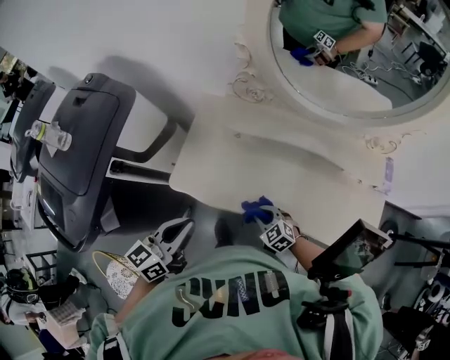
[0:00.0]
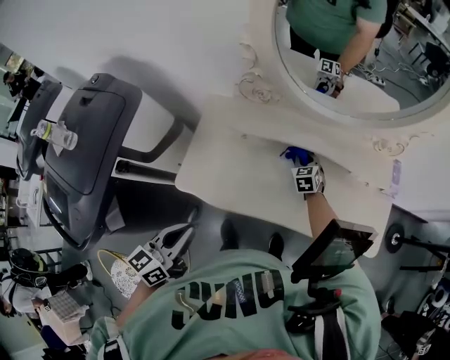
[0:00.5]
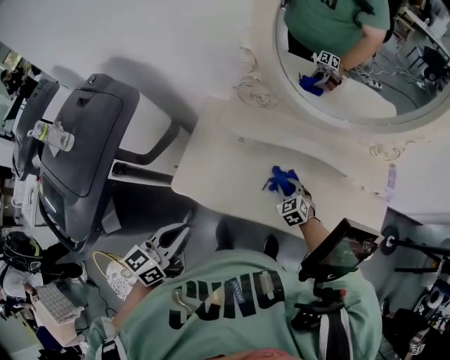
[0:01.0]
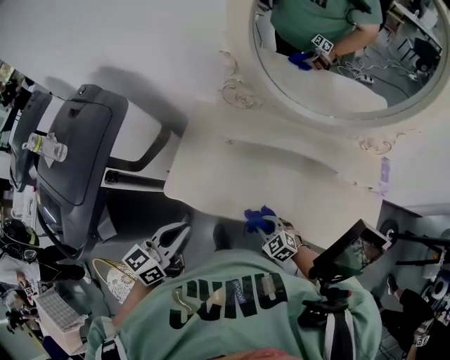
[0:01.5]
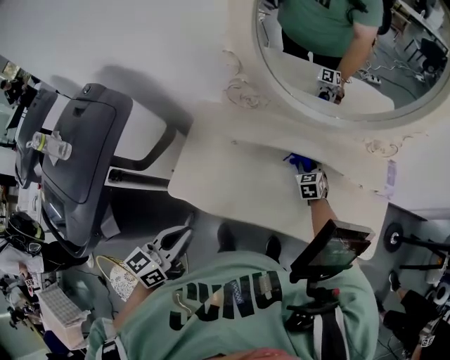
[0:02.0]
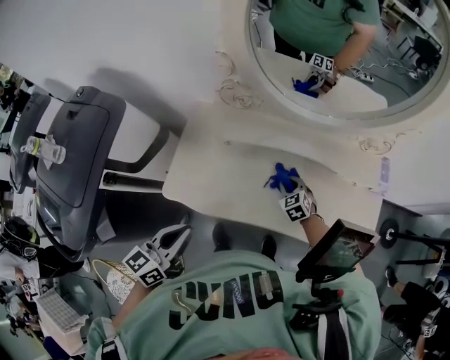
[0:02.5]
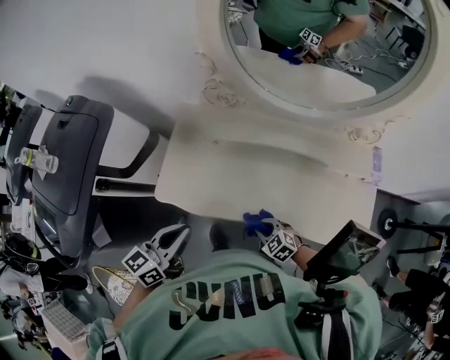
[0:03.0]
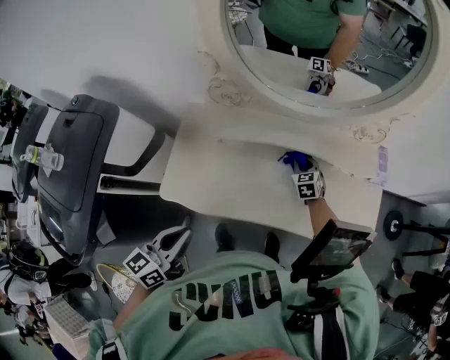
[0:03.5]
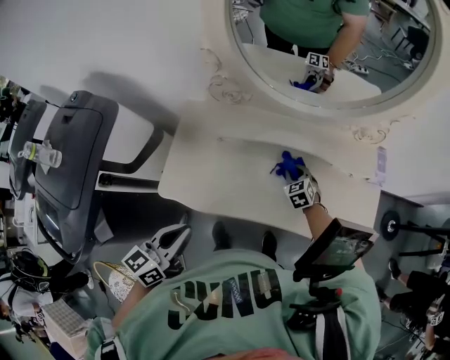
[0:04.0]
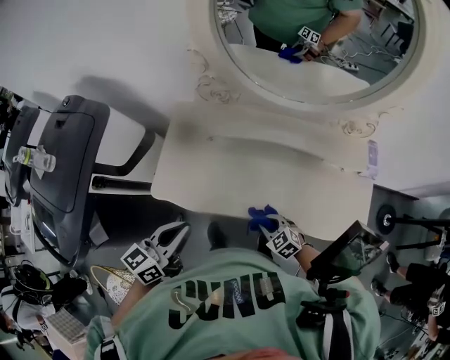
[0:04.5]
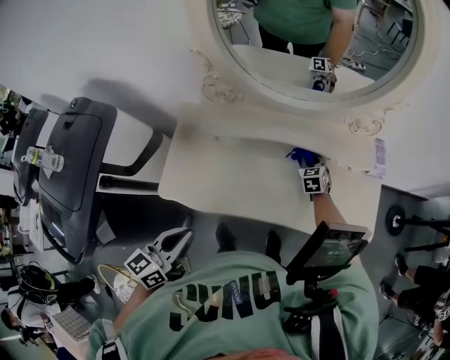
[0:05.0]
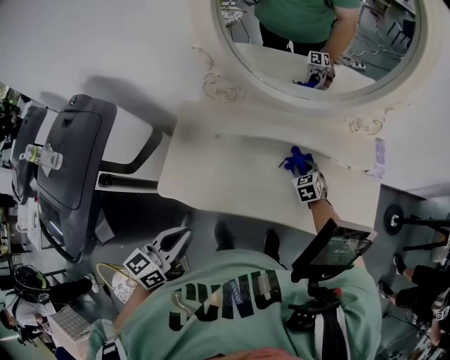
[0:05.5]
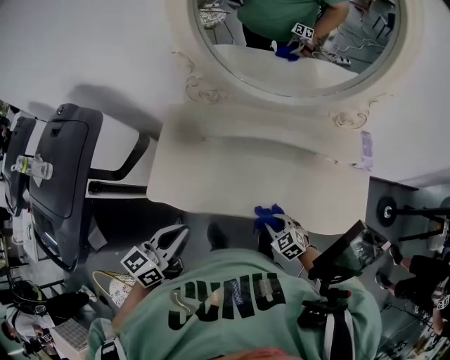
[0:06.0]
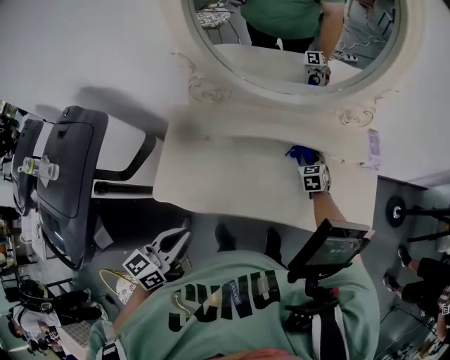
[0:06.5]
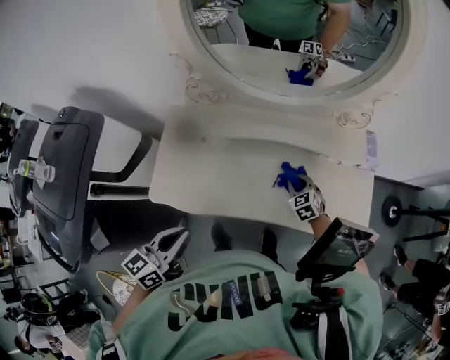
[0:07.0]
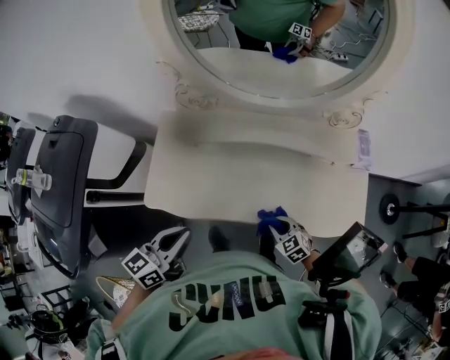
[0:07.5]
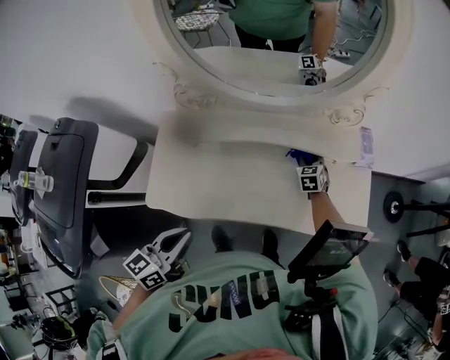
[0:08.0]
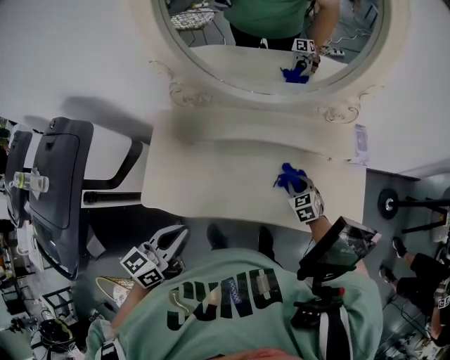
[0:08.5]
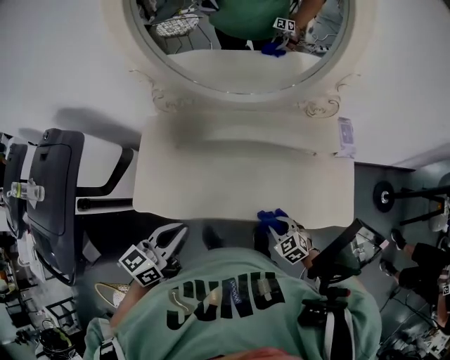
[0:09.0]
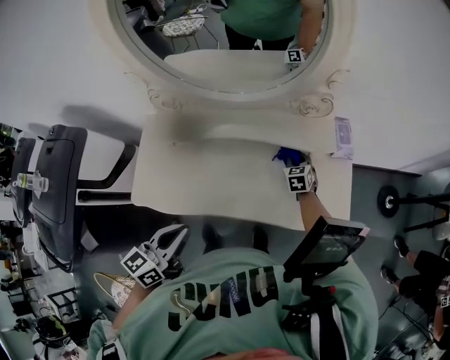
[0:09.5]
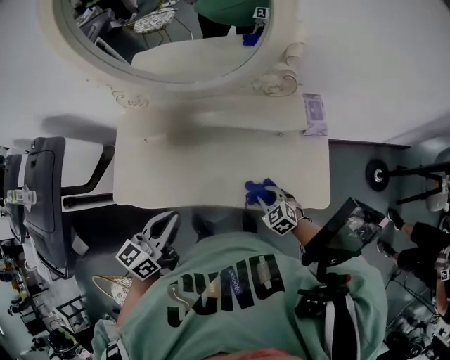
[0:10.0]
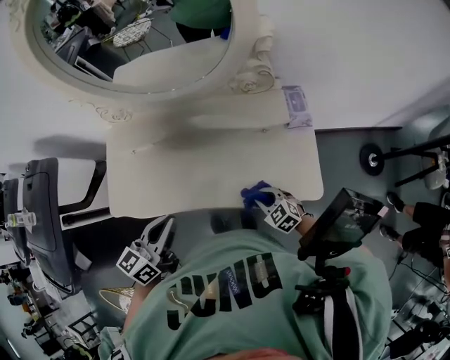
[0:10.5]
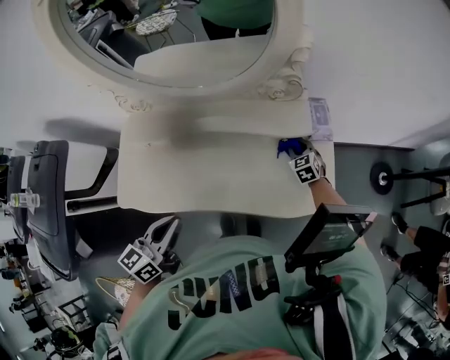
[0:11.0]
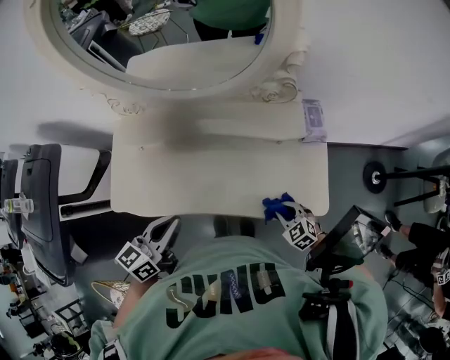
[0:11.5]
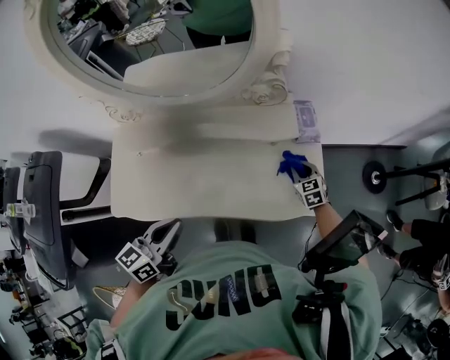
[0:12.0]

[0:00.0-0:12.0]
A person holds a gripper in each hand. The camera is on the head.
0:00.0 to 0:02.0: The right gripper swings forward and backward, roughly 25 cm each way, with 2 reversals, and rotates approximately 40 degrees.
0:04.0 to 0:06.0: The right gripper moves some 25 cm.
0:06.0 to 0:08.0: The right gripper changes place by about 30 cm, and changes its angle by some 40 degrees.
0:08.0 to 0:10.0: The right gripper swings forward and backward, roughly 30 cm each way, with 2 reversals, and rotates approximately 30 degrees, while the left gripper heads to the right, covering about 15 cm.
0:10.0 to 0:12.0: The right gripper moves forward and backward over approximately 25 cm, changing direction 2 times, and changes its angle by about 30 degrees.

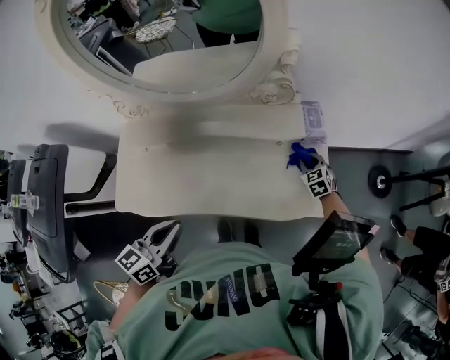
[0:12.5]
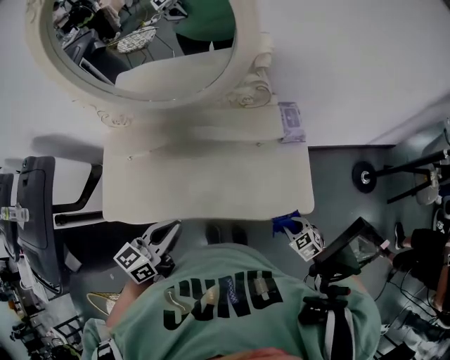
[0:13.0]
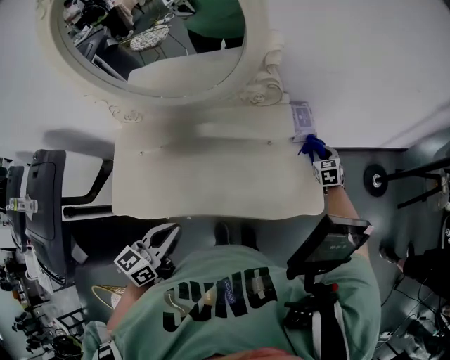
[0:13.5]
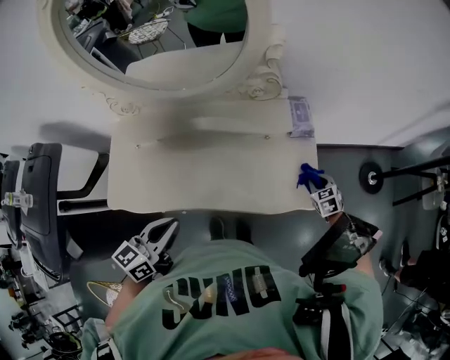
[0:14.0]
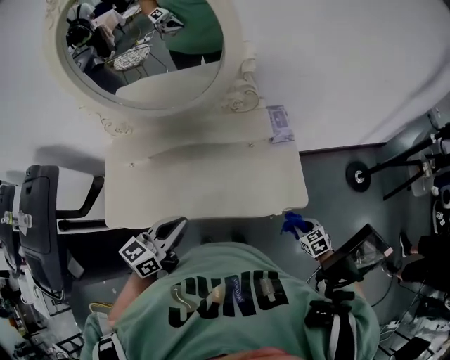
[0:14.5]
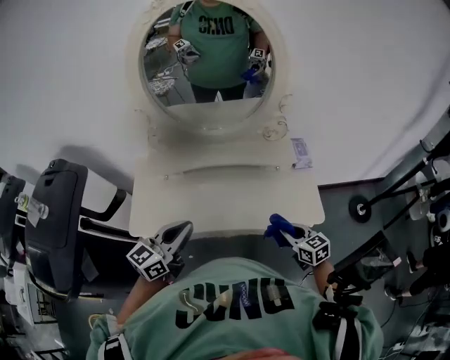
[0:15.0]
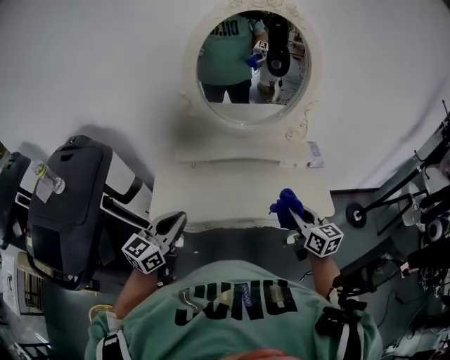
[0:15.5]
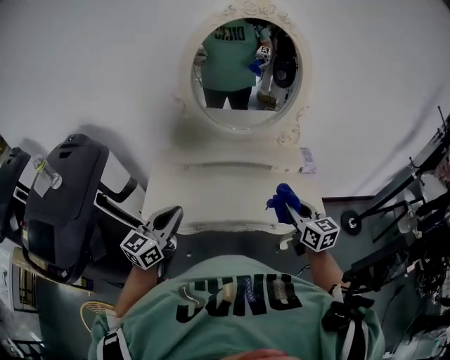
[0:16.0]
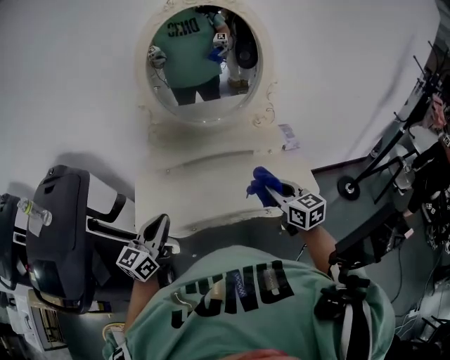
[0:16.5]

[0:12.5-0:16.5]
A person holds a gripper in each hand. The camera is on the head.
0:12.5 to 0:14.5: The right gripper moves forward and backward over some 30 cm, changing direction 2 times; the left gripper shifts about 5 cm to the right.
0:14.5 to 0:16.5: The left gripper goes approximately 30 cm to the left and backward, and changes its angle by approximately 20 degrees, while the right gripper travels upward and to the left by roughly 50 cm, and tips its fingers upward by some 40 degrees.

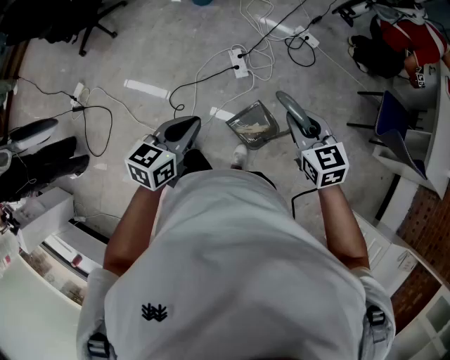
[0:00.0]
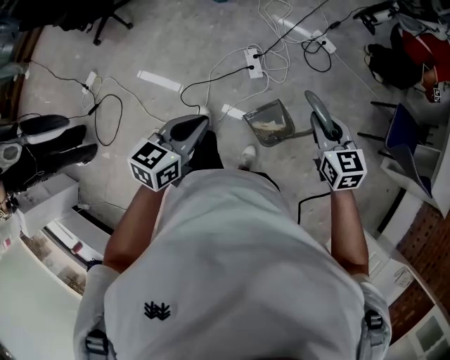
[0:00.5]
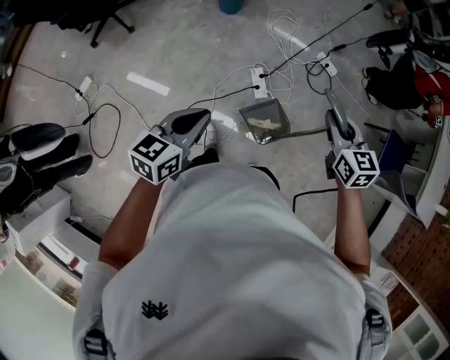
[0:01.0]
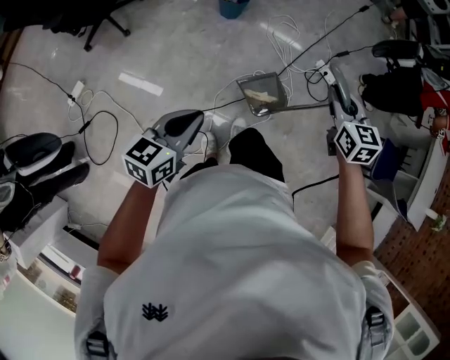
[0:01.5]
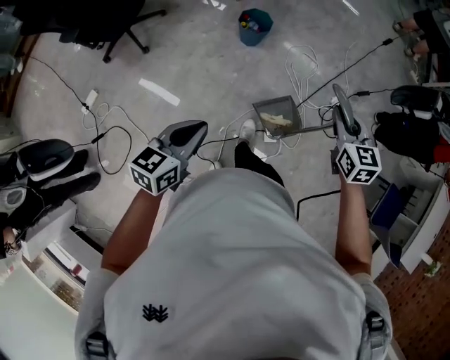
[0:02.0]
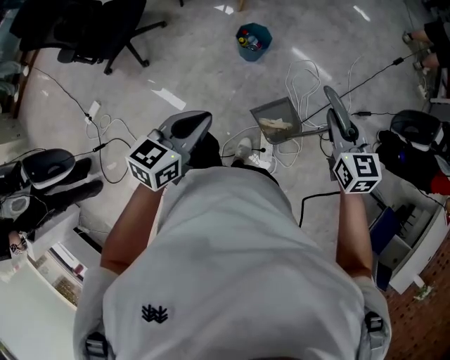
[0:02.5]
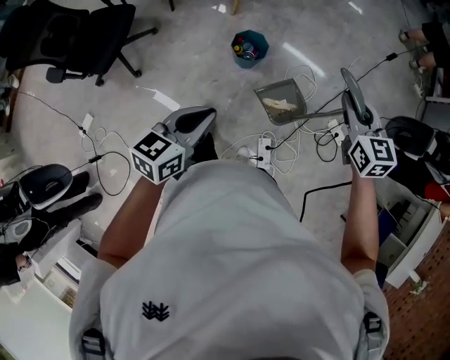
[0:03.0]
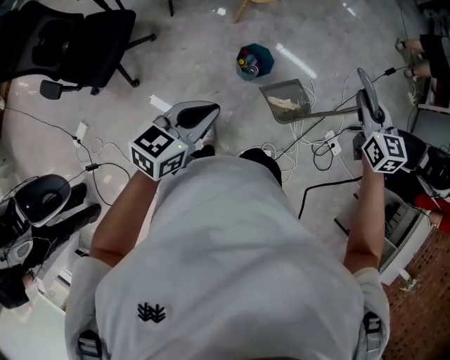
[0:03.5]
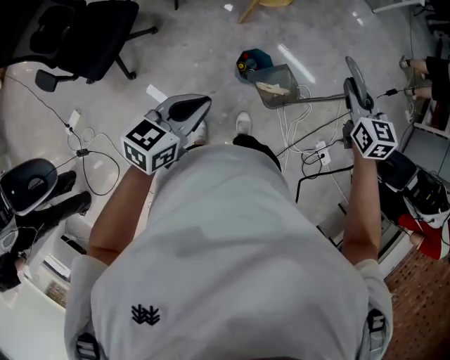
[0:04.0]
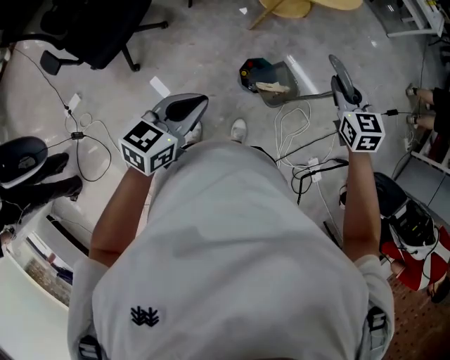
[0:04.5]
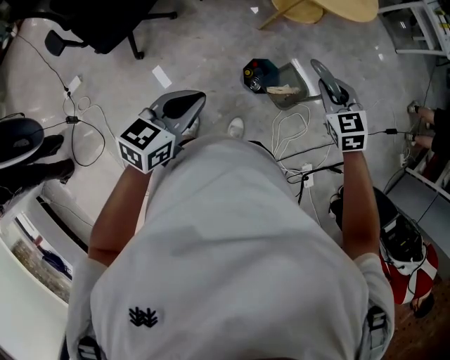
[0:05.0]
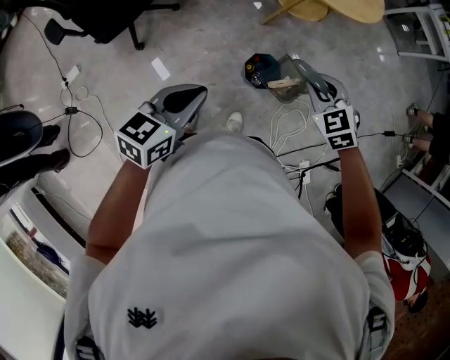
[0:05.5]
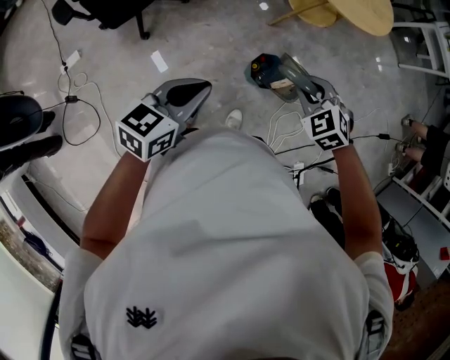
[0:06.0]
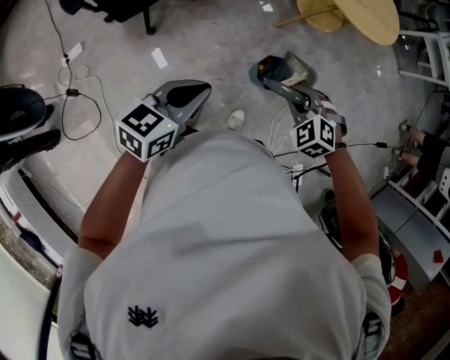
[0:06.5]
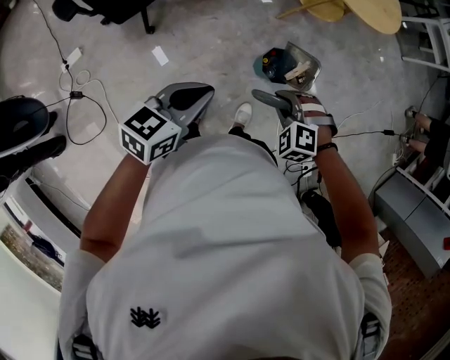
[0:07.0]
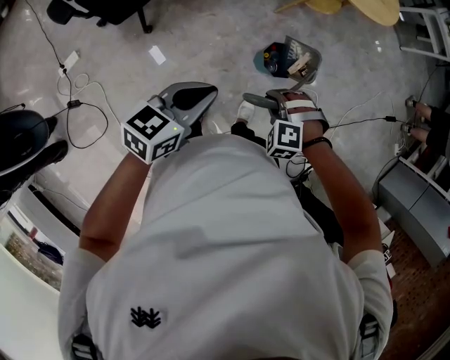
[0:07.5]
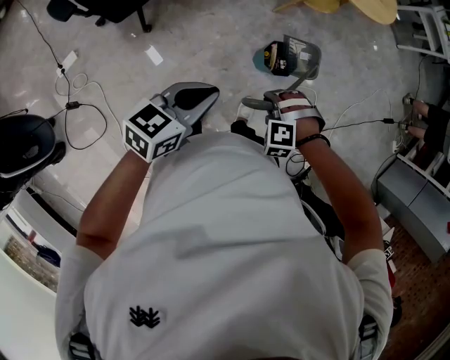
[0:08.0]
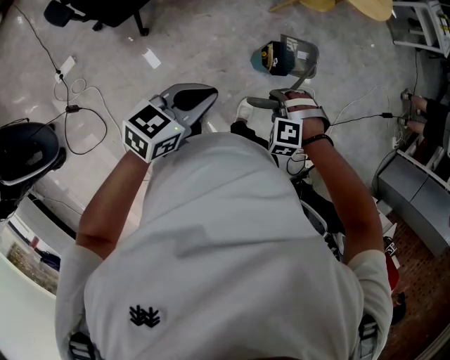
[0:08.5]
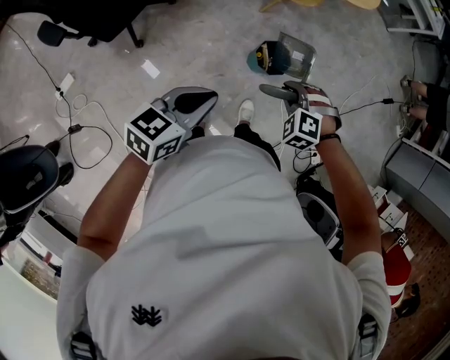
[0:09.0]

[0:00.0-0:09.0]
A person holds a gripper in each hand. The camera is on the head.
0:00.0 to 0:02.0: The pair of grippers is taken forward and to the left, some 50 cm.
0:02.0 to 0:04.5: Both grippers are carried forward, about 60 cm. The right gripper turns by some 20 degrees.
0:04.5 to 0:07.0: The left gripper shifts about 10 cm to the left, while the right gripper shifts about 30 cm to the left, backward and downward, and rotates around the line of its fingers by approximately 60 degrees, counterclockwise from behind.

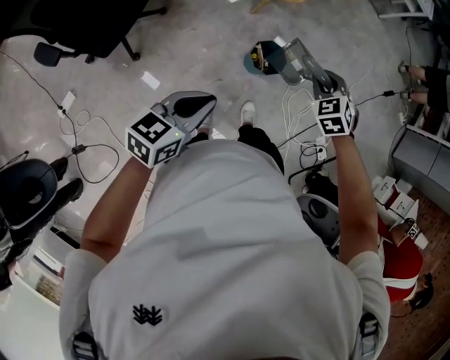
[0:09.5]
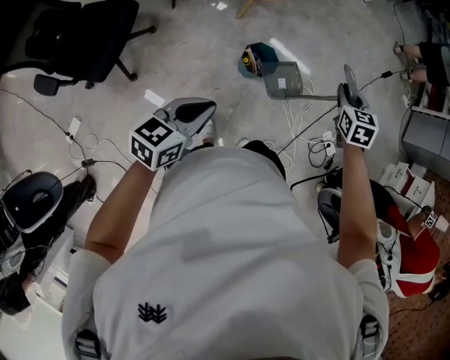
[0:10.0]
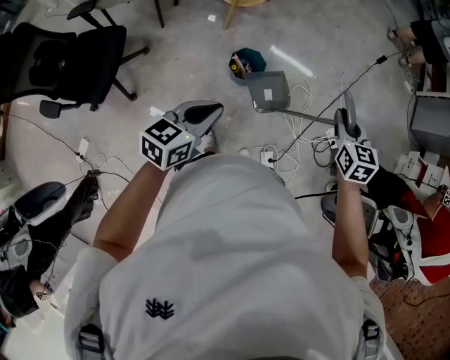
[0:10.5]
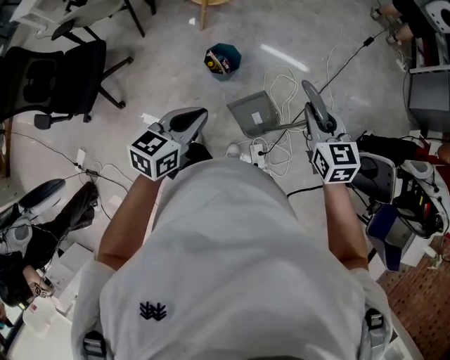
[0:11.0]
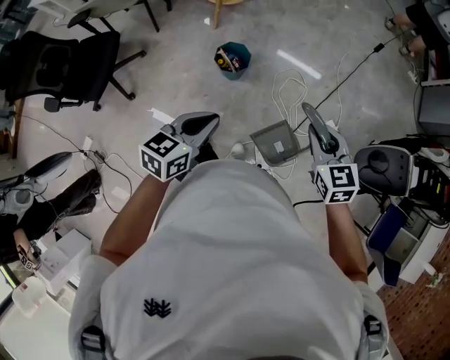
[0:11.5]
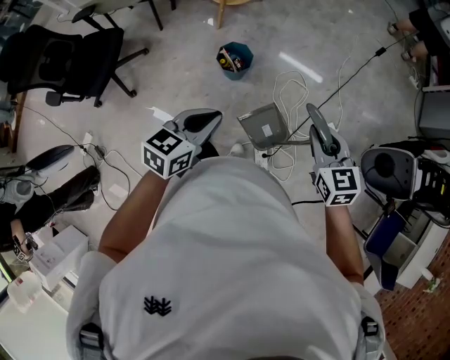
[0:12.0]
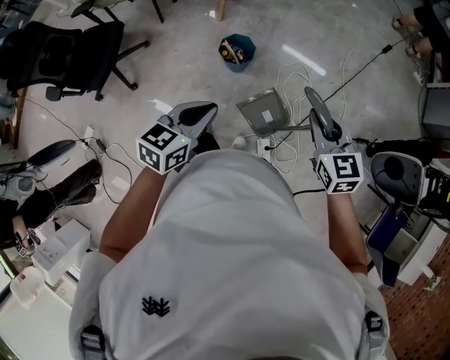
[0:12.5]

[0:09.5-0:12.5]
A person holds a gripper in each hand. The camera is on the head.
0:09.5 to 0:11.0: Both grippers travel together to the right, roughly 30 cm. The right gripper rolls clockwise, seen from behind, by roughly 40 degrees.
0:11.0 to 0:12.5: The left gripper shifts by approximately 5 cm.
